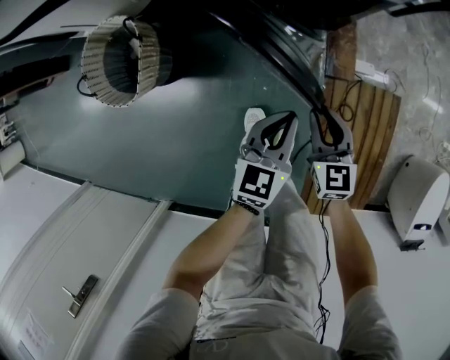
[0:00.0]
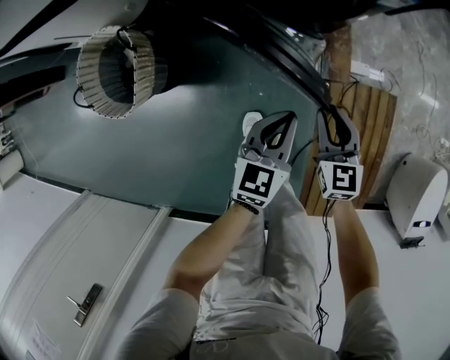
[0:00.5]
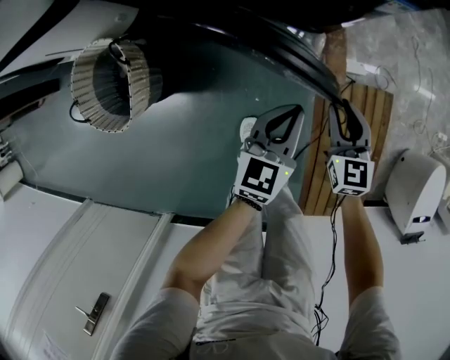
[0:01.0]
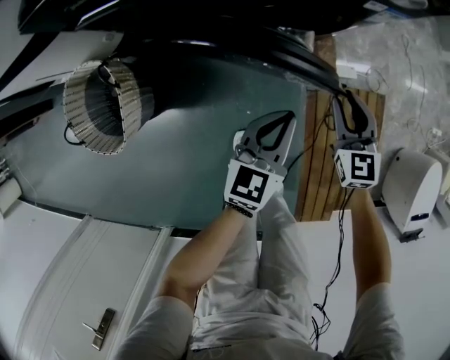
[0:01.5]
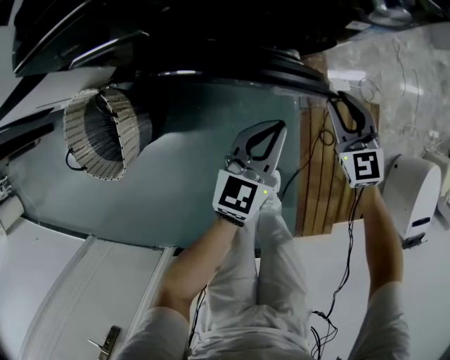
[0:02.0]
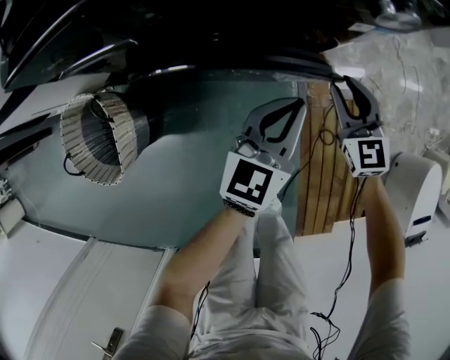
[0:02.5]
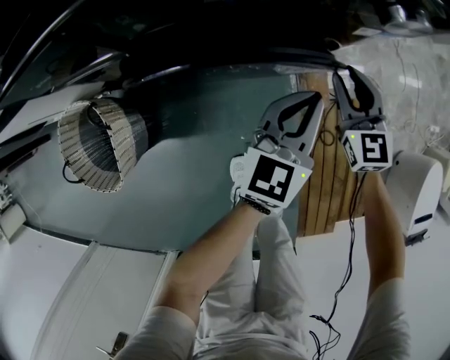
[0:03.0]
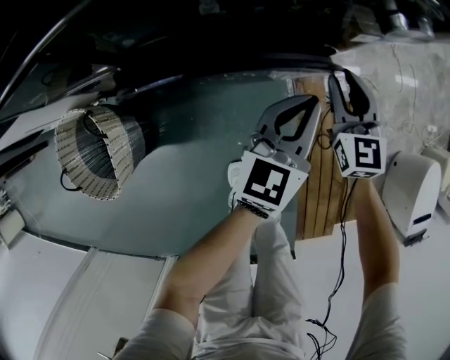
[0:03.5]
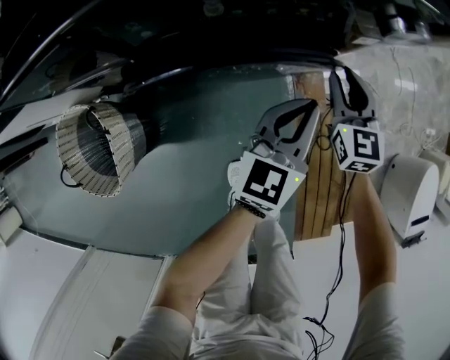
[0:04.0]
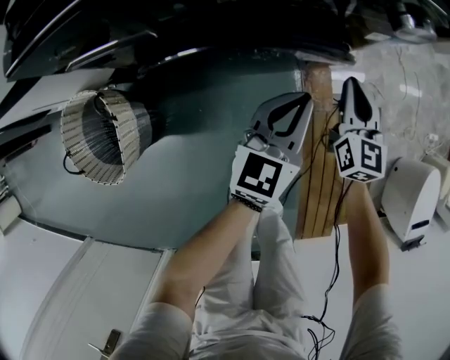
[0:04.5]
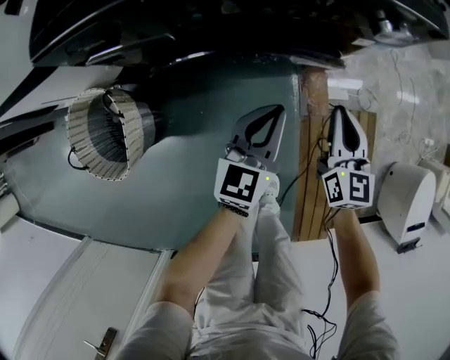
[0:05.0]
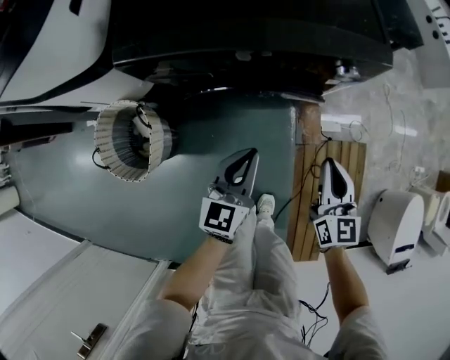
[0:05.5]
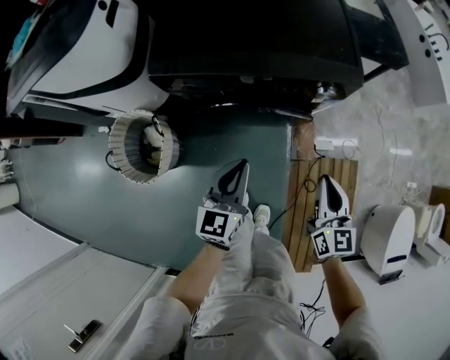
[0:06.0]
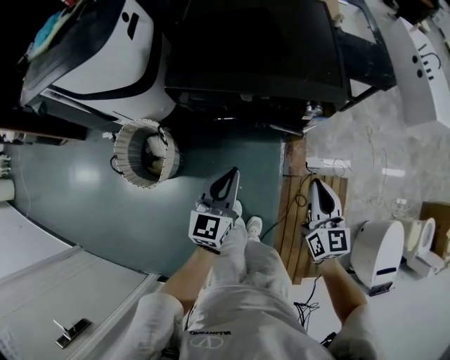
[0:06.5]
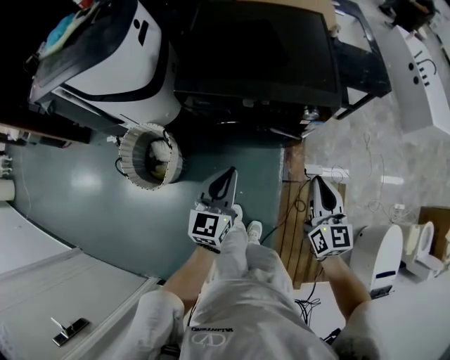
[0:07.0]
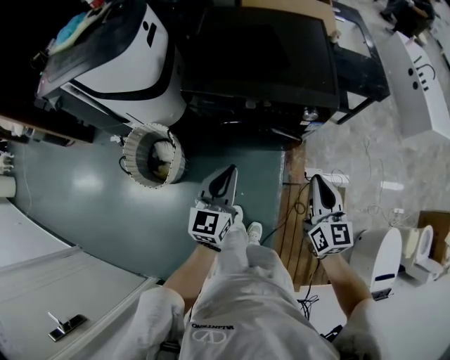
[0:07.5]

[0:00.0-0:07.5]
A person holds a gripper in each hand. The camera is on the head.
0:00.0 to 0:02.0: Both grippers move forward, approximately 20 cm.
0:02.0 to 0:04.0: Both grippers move forward, some 10 cm.
0:04.0 to 0:05.5: The right gripper is displaced upward and backward by approximately 25 cm, and closes up, while the left gripper is displaced upward, to the left and backward by some 20 cm.
0:05.5 to 0:07.5: The grippers both shift upward by some 20 cm.

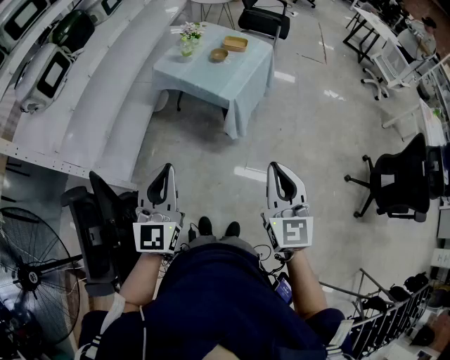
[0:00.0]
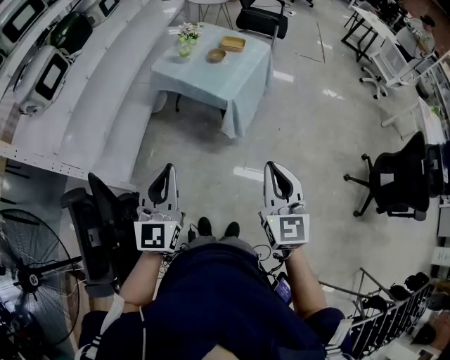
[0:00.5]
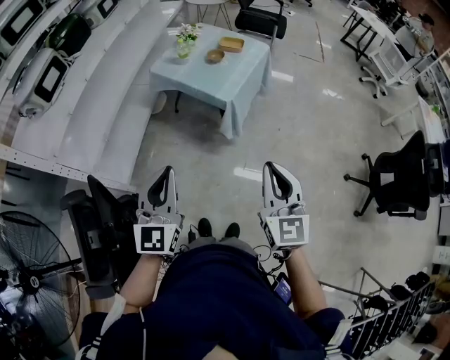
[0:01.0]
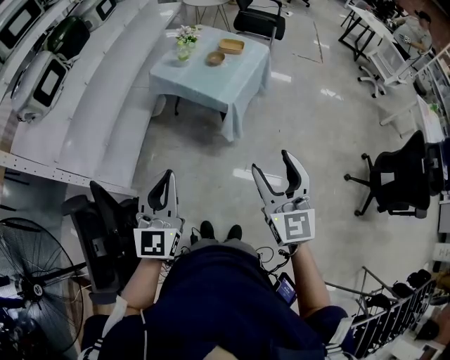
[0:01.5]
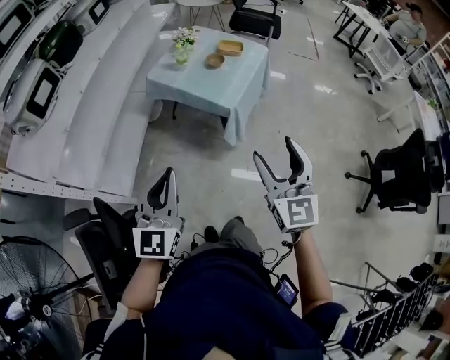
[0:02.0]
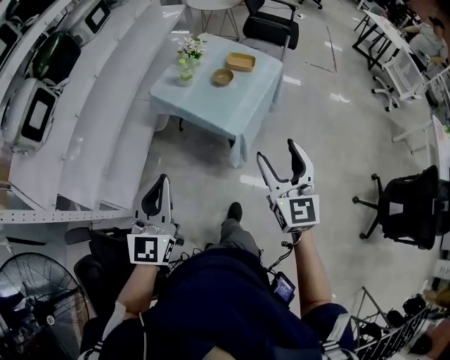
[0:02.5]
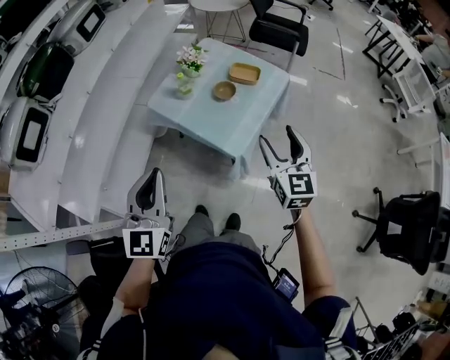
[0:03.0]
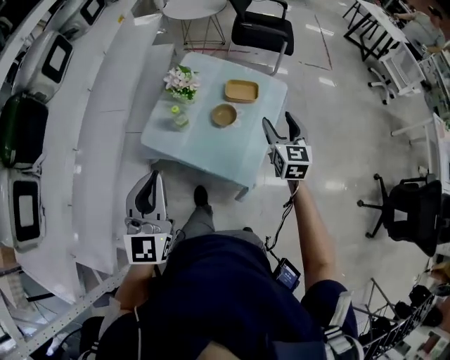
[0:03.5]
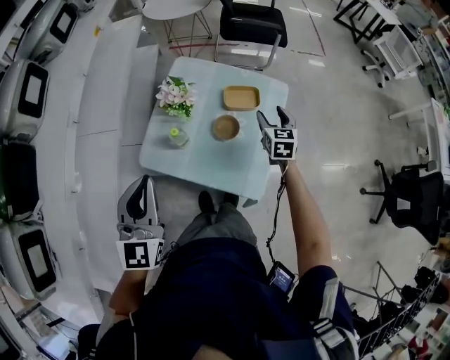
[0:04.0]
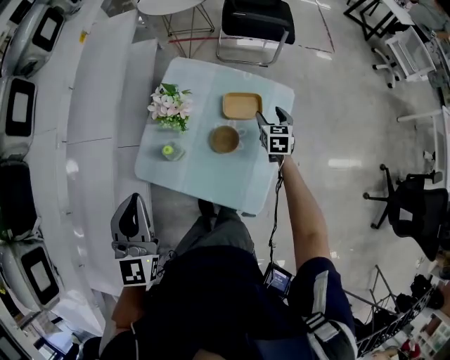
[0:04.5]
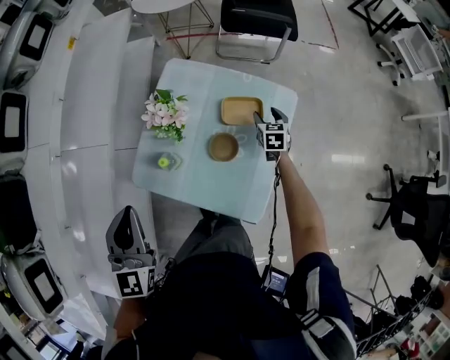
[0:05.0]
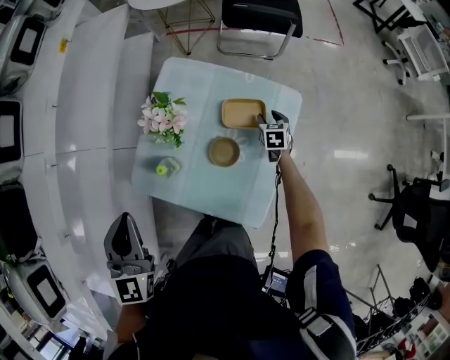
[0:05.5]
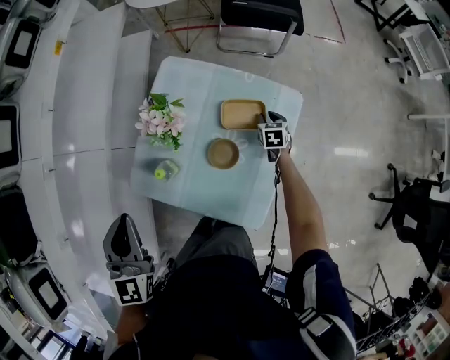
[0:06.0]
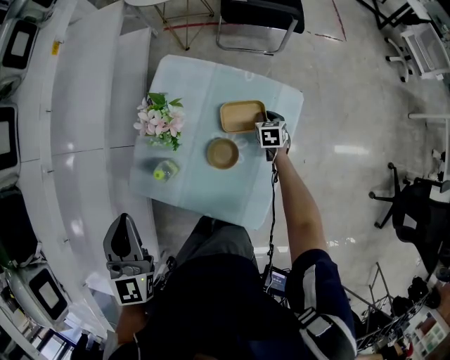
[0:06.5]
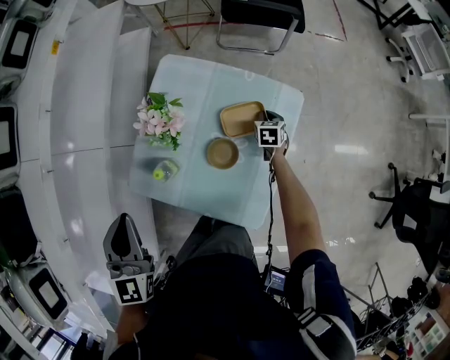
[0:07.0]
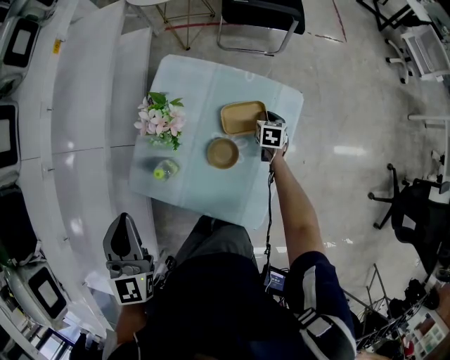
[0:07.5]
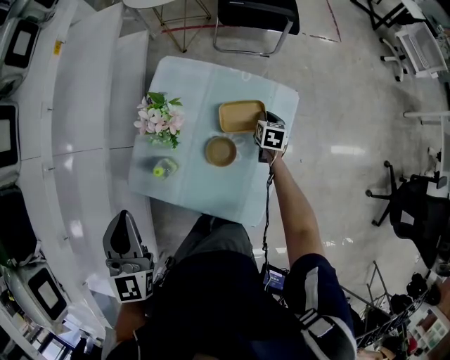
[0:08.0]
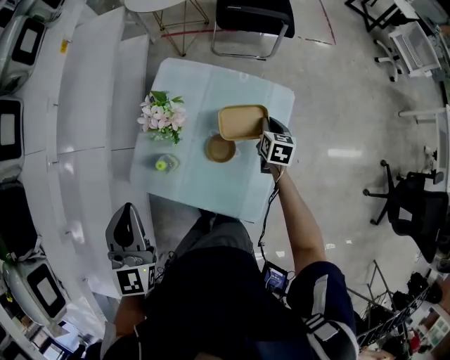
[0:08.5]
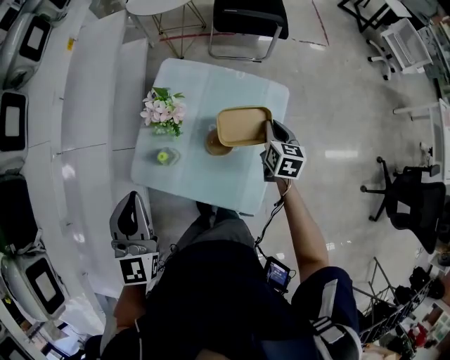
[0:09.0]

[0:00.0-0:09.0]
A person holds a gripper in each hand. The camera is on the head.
0:00.0 to 0:02.0: The left gripper moves forward, approximately 5 cm. The right gripper shifts some 10 cm forward, and opens its fingers.
0:02.0 to 0:04.5: Both grippers are carried forward, approximately 70 cm. The right gripper travels downward by approximately 35 cm, and angles its fingers downward, by approximately 30 degrees.
0:04.5 to 0:07.0: The left gripper goes approximately 5 cm forward, while the right gripper goes some 15 cm downward and forward, and closes up.
0:07.0 to 0:09.0: The right gripper moves upward and backward, approximately 25 cm, and changes its angle by about 20 degrees, while the left gripper changes place by about 5 cm.

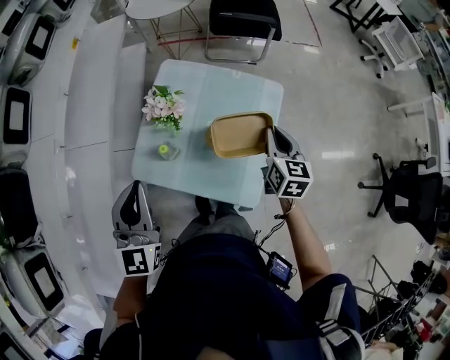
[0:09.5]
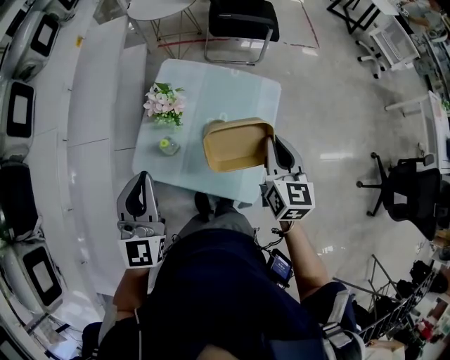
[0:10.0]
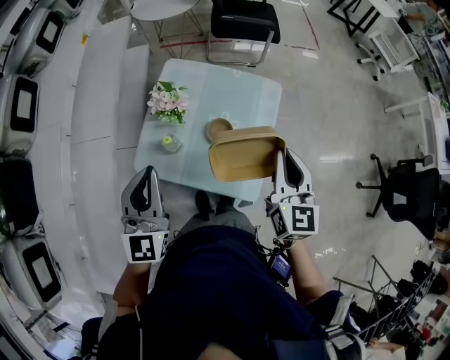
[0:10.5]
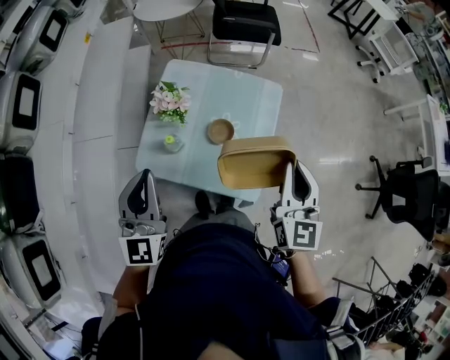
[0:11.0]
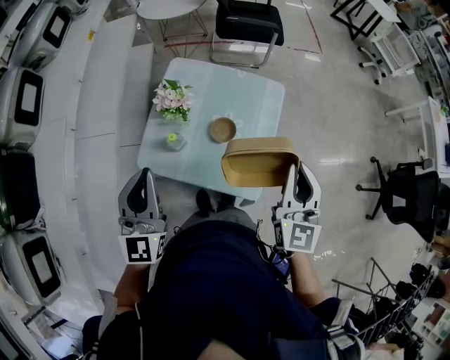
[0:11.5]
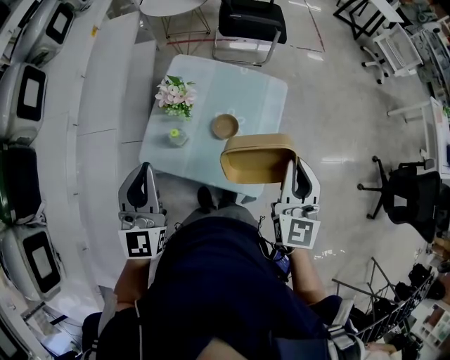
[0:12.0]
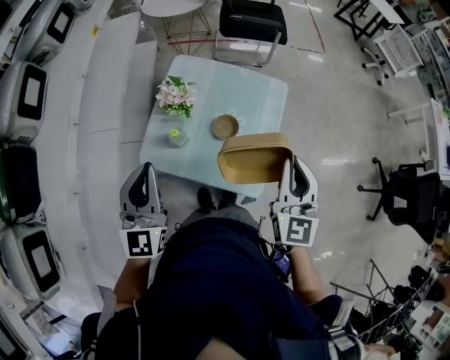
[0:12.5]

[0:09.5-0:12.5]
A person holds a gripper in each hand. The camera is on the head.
0:09.5 to 0:11.0: The right gripper shifts approximately 20 cm upward and backward, and rotates some 20 degrees.
0:11.0 to 0:12.5: There are only small adjustments of the grippers.

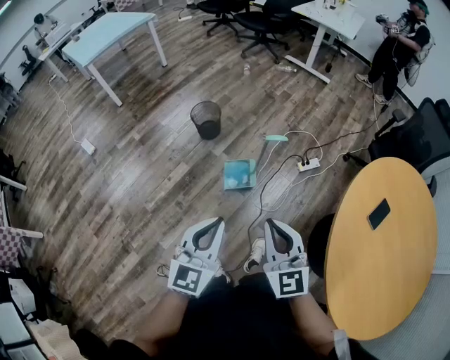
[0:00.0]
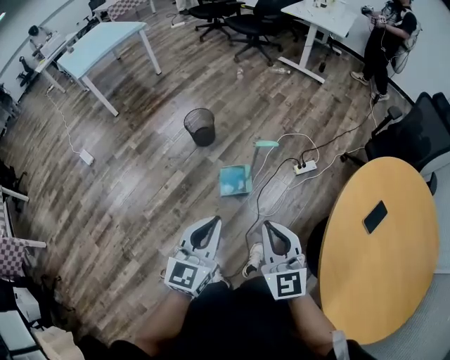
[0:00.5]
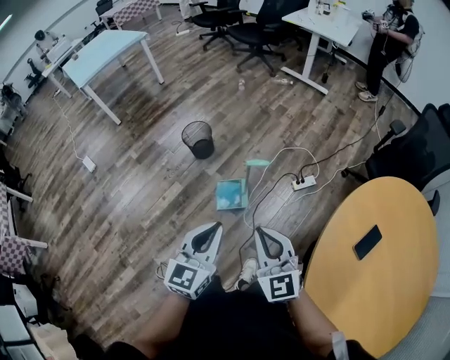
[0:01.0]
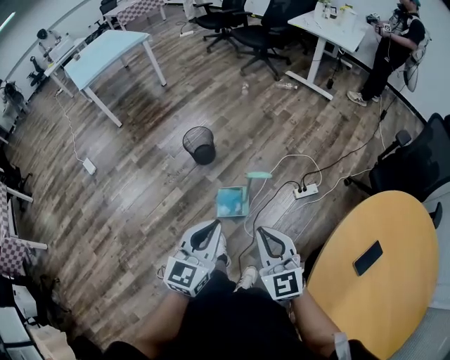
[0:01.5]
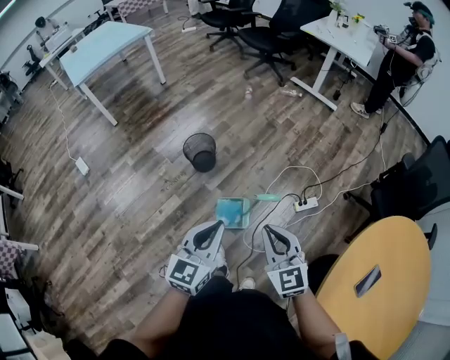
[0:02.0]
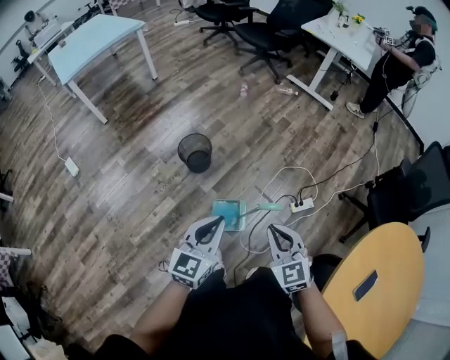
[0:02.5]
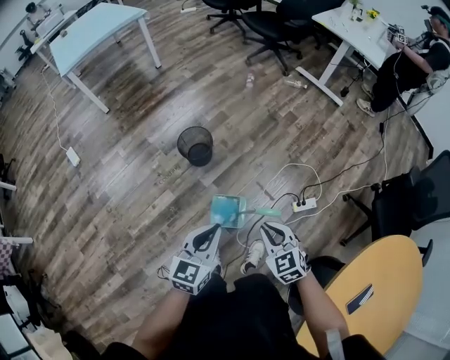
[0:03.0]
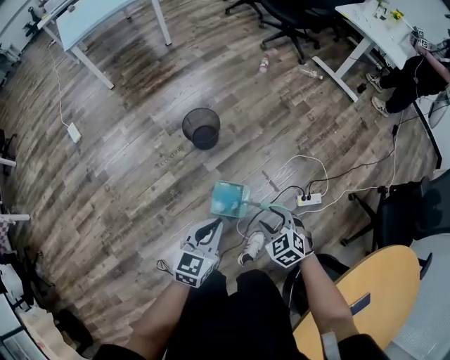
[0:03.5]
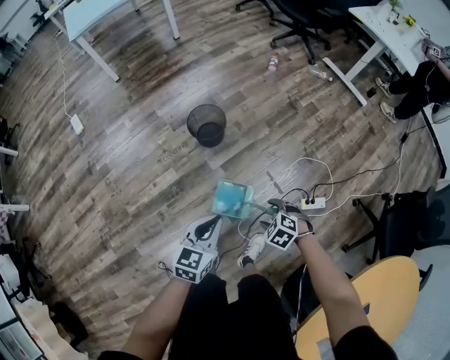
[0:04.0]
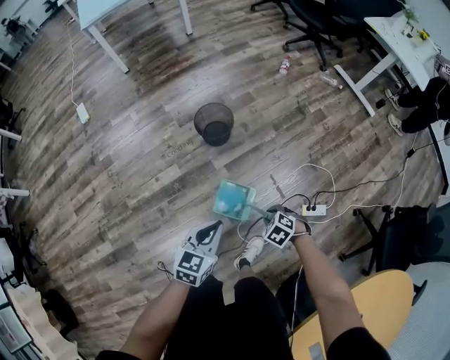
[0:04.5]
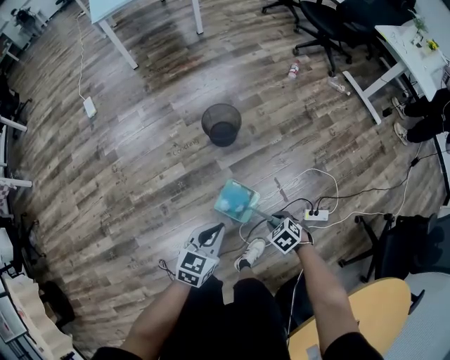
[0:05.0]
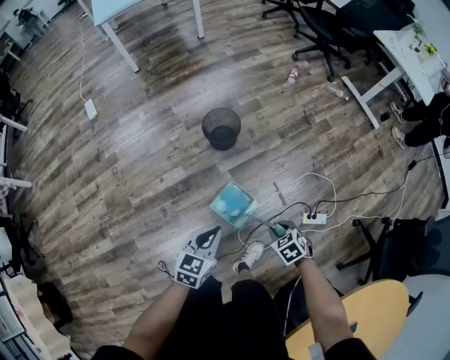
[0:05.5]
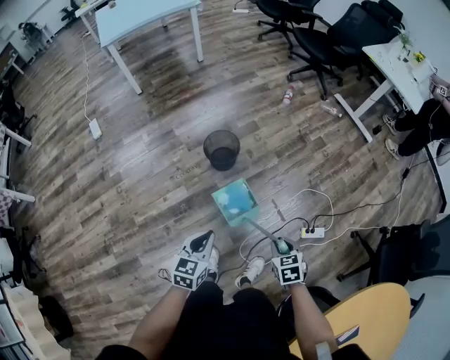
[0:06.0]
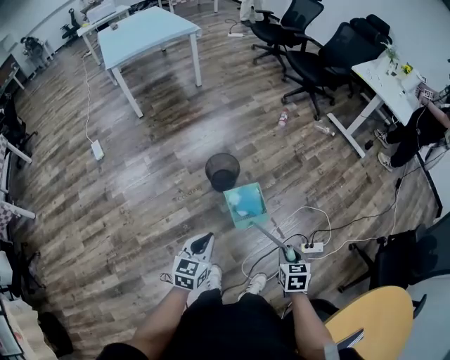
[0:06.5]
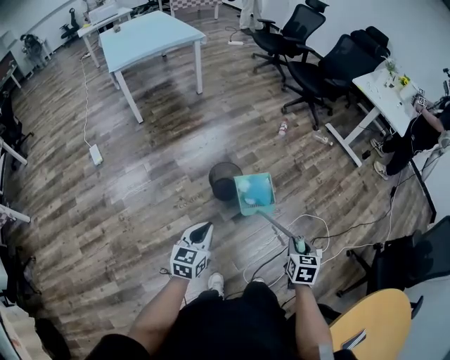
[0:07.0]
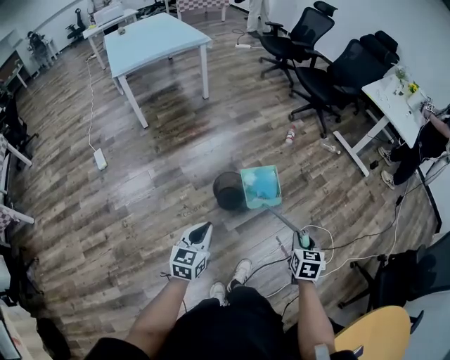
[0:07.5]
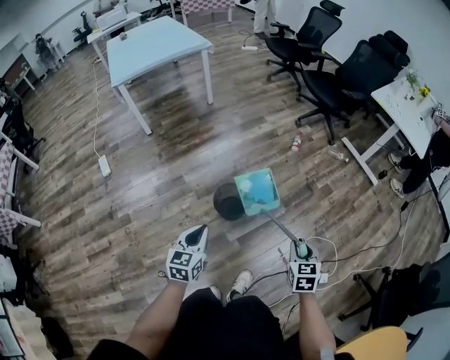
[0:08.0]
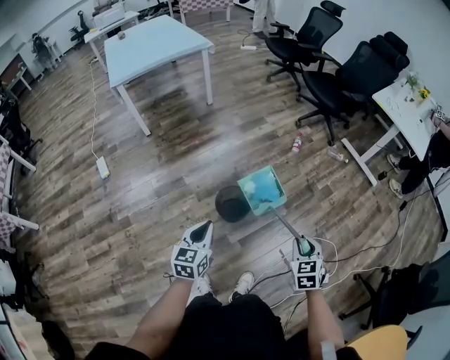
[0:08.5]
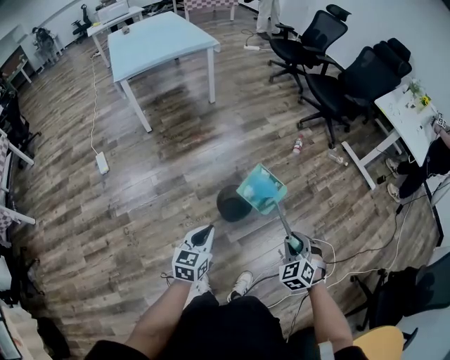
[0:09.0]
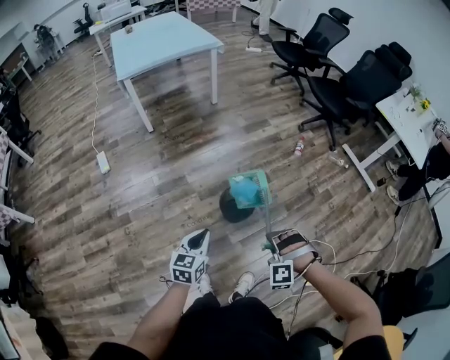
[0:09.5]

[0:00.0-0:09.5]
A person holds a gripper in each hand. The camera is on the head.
0:00.0 to 0:02.0: Both grippers move forward, roughly 25 cm.
0:02.0 to 0:04.0: The left gripper travels downward by roughly 20 cm, and rotates approximately 20 degrees. Meanwhile the right gripper shifts some 30 cm downward, tilts its fingers approximately 50 degrees downward, and opens up.
0:04.0 to 0:05.5: The right gripper closes.
0:05.5 to 0:07.5: The right gripper travels upward and forward by about 25 cm, and turns by roughly 50 degrees. The left gripper moves forward, to the left and upward, some 25 cm.
0:07.5 to 0:09.5: The left gripper is displaced forward and to the left by some 10 cm. The right gripper heads to the left, covering approximately 20 cm, and rolls counterclockwise, seen from behind, by some 100 degrees.
